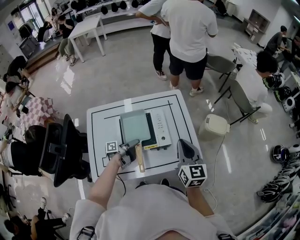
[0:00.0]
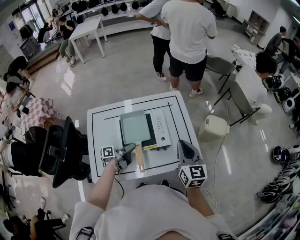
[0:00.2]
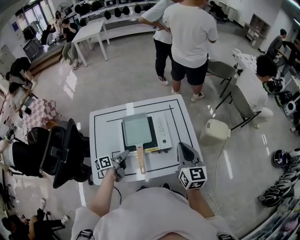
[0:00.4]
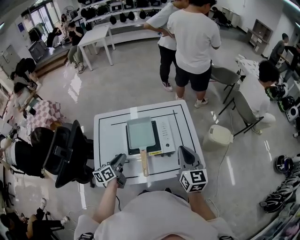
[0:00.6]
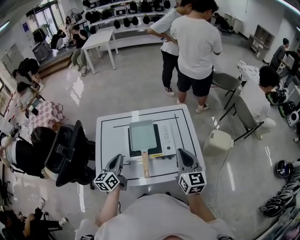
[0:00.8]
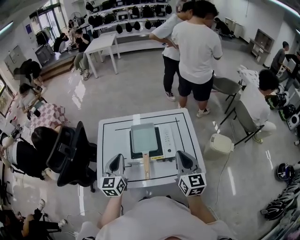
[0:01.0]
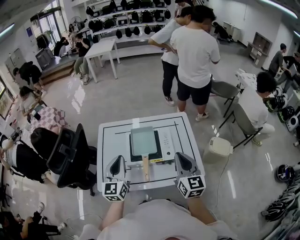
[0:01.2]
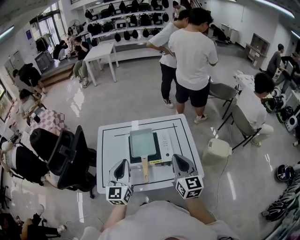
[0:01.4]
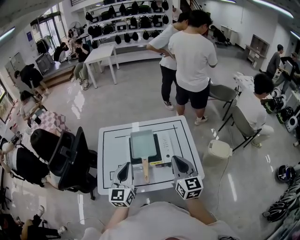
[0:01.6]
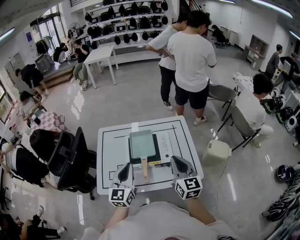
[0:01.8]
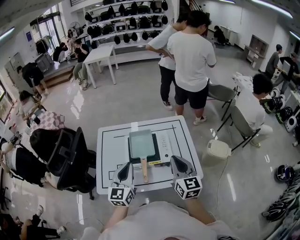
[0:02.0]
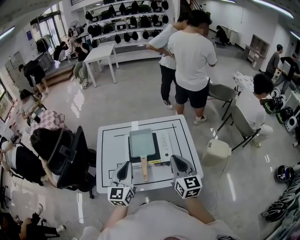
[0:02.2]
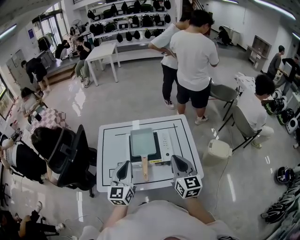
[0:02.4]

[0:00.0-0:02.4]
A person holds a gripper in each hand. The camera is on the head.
0:00.0 to 0:01.2: The left gripper shifts roughly 25 cm upward, rotates around the line of its fingers by about 90 degrees, clockwise from behind, and closes up; the right gripper ends up roughly 5 cm from where it was.
0:01.2 to 0:02.4: The grippers move only a little.

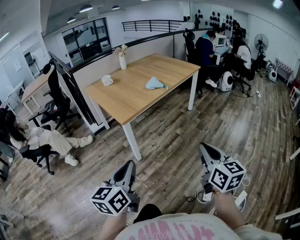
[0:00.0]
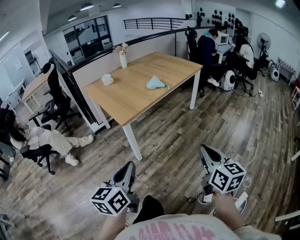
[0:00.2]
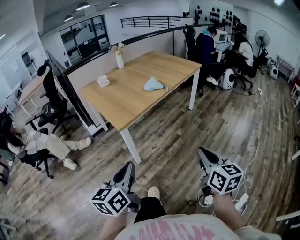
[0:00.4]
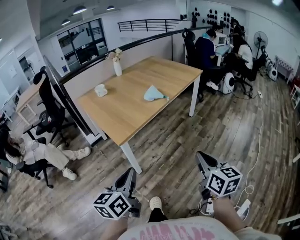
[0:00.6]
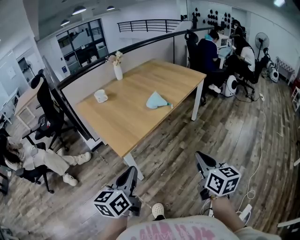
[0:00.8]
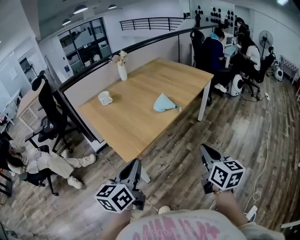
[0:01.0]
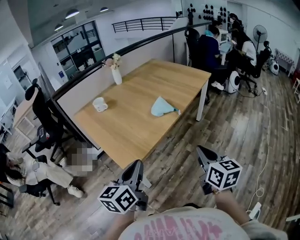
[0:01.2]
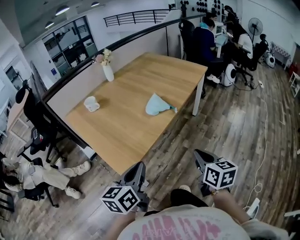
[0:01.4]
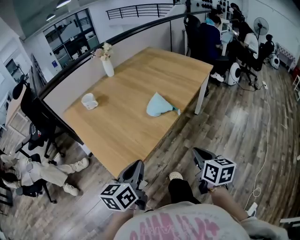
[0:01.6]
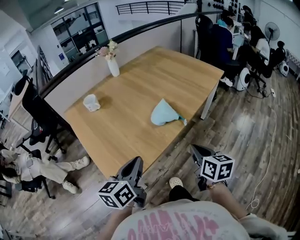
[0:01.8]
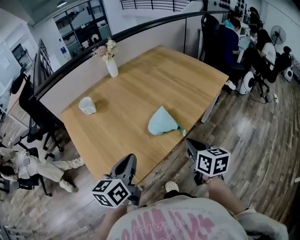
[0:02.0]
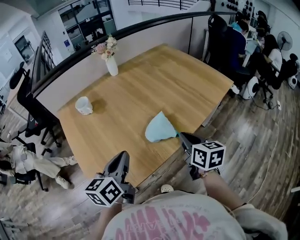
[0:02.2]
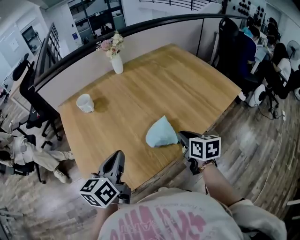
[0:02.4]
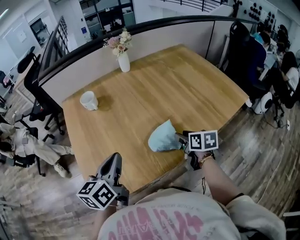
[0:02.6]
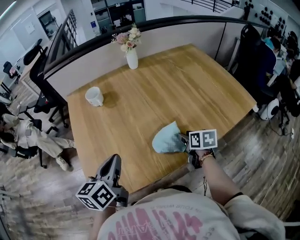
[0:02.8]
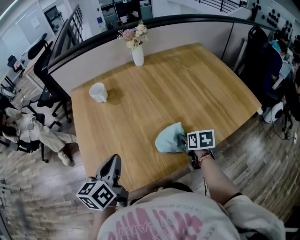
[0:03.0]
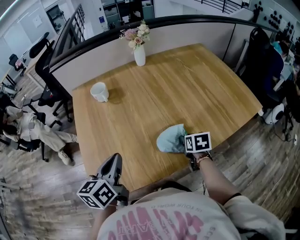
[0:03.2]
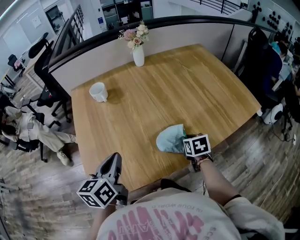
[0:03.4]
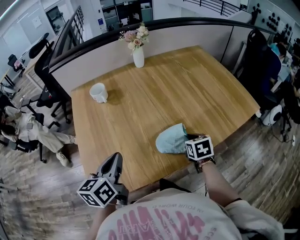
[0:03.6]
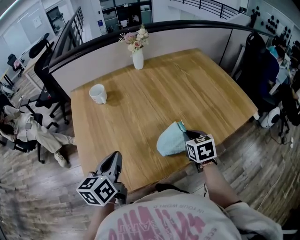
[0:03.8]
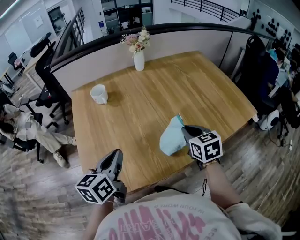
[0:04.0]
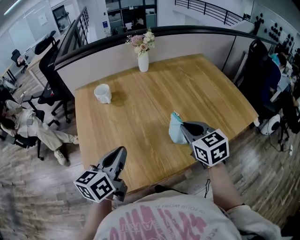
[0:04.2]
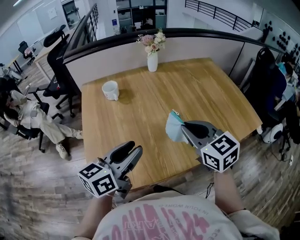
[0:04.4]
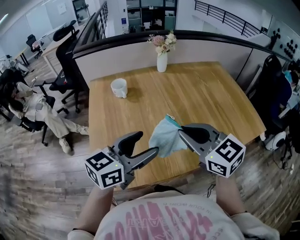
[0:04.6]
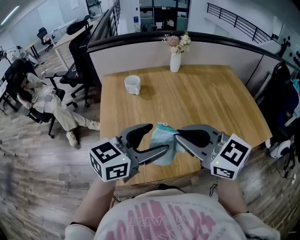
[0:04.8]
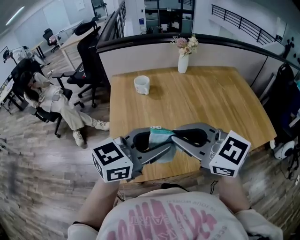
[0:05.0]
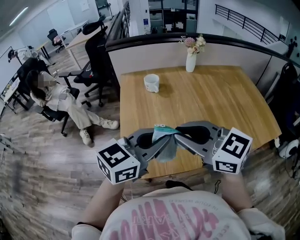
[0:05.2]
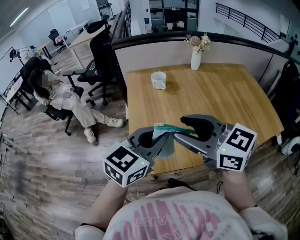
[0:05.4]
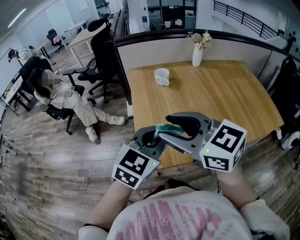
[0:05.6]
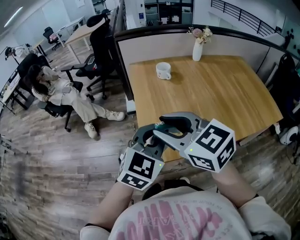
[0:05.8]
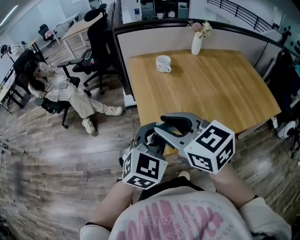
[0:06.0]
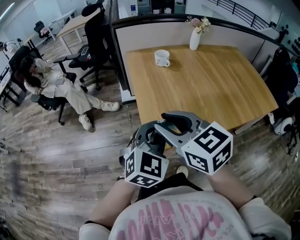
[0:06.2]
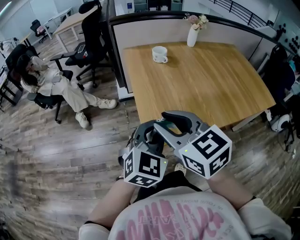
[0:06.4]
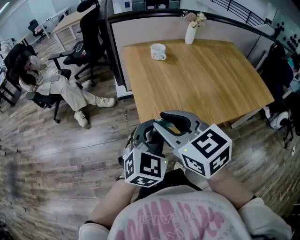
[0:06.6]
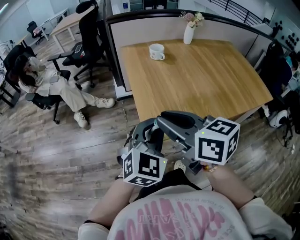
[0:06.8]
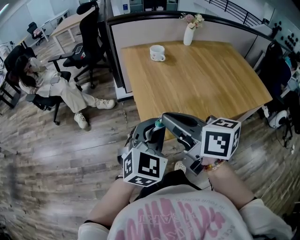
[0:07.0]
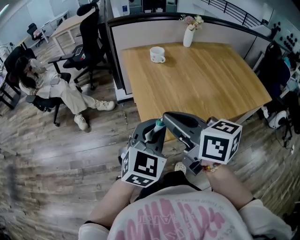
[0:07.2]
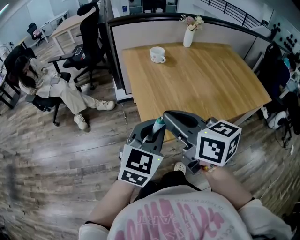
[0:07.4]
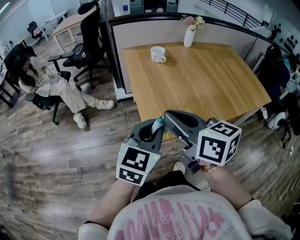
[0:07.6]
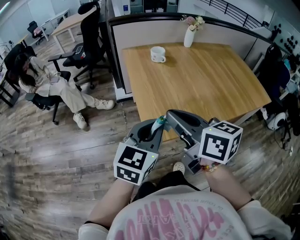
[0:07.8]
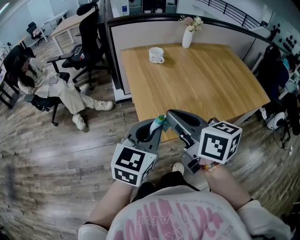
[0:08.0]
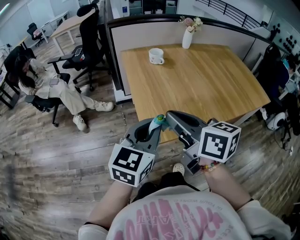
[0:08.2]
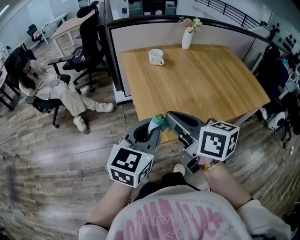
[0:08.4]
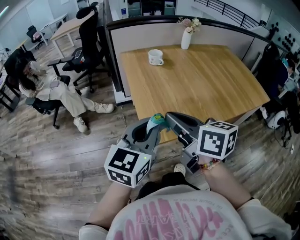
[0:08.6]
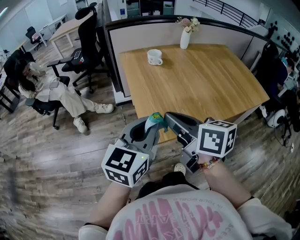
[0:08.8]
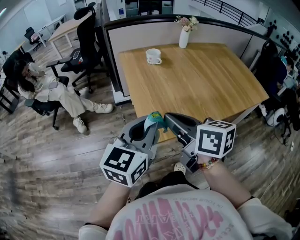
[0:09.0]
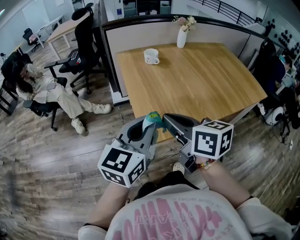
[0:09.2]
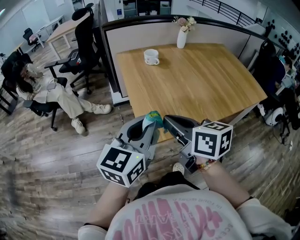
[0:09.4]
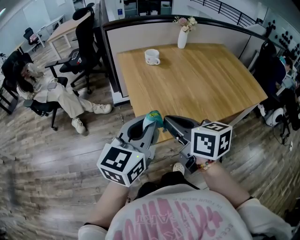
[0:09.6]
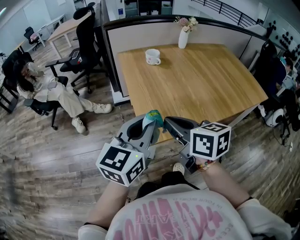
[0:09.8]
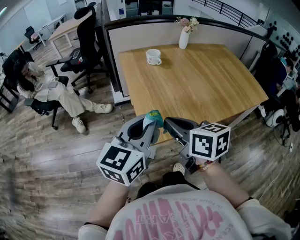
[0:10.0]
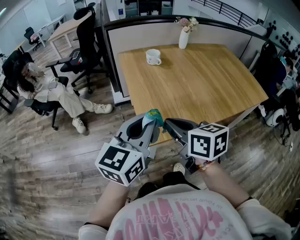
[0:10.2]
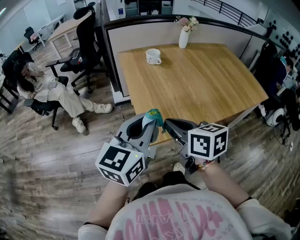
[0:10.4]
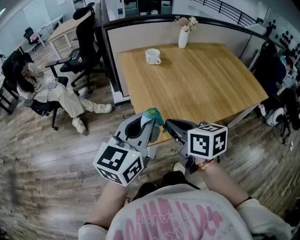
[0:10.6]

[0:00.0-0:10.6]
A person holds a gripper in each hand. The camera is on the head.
0:00.0 to 0:01.6: Both grippers are carried forward, about 40 cm. The right gripper rotates roughly 20 degrees.
0:01.6 to 0:03.0: The left gripper ends up some 20 cm from where it was, and turns by some 30 degrees; the right gripper shifts by approximately 40 cm, turns by some 40 degrees, and opens up.
0:03.0 to 0:04.6: The right gripper is displaced upward and to the left by about 30 cm, angles its fingers upward, by about 30 degrees, and closes, while the left gripper shifts approximately 10 cm upward and to the right, changes its angle by approximately 30 degrees, and opens up.
0:04.6 to 0:06.0: The right gripper is displaced to the left by approximately 35 cm, and opens its fingers. Meanwhile the left gripper goes about 20 cm to the left and backward, rotates roughly 40 degrees, and closes its fingers.
0:06.0 to 0:07.6: The left gripper moves approximately 5 cm, and rotates roughly 20 degrees. Meanwhile the right gripper turns by about 30 degrees, and closes its fingers.
0:07.6 to 0:09.0: There are only small adjustments of the grippers.
0:09.0 to 0:10.6: There are only small adjustments of the grippers.

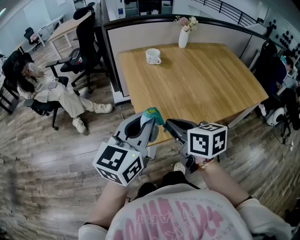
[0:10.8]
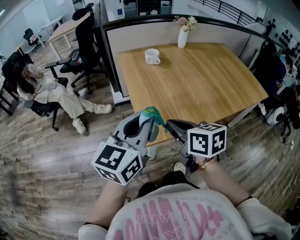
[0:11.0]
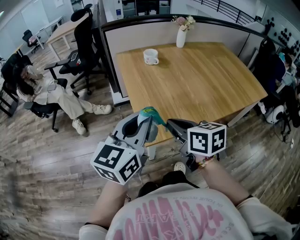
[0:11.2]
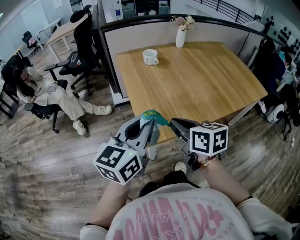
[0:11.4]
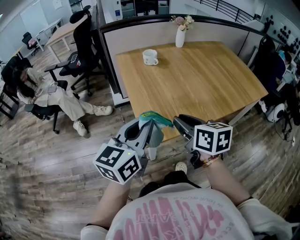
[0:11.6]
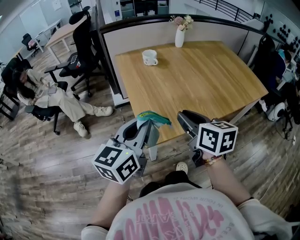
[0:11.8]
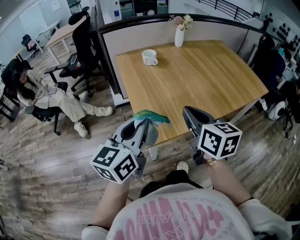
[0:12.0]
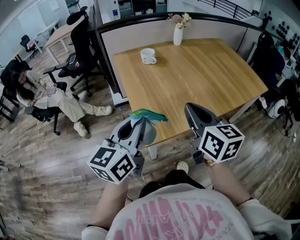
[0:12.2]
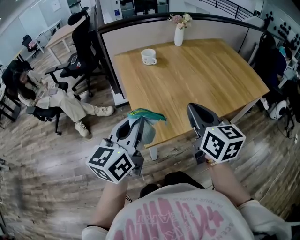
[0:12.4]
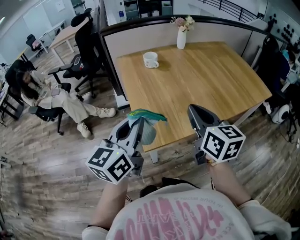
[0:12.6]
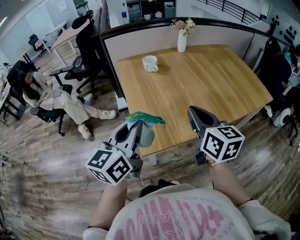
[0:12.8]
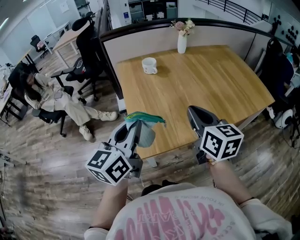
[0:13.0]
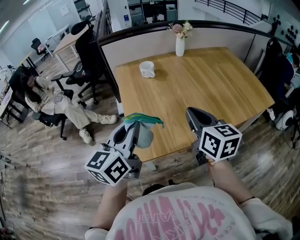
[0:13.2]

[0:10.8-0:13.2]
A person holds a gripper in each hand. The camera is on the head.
0:10.8 to 0:12.0: The right gripper shifts approximately 5 cm to the right, and opens, then closes again.
0:12.0 to 0:13.2: The right gripper is displaced to the right and forward by some 10 cm. The left gripper moves forward, about 5 cm.

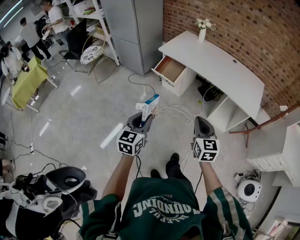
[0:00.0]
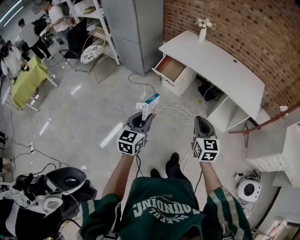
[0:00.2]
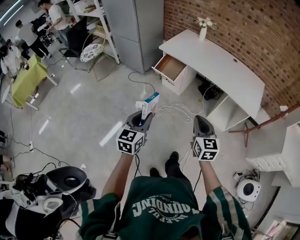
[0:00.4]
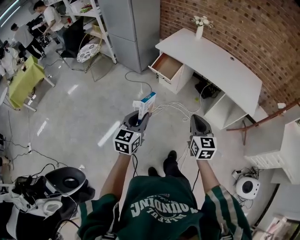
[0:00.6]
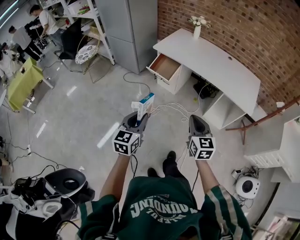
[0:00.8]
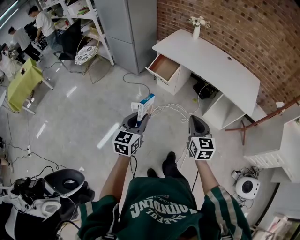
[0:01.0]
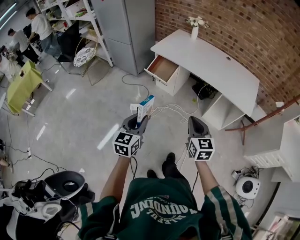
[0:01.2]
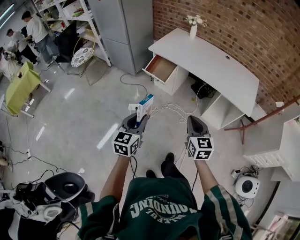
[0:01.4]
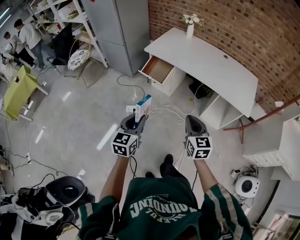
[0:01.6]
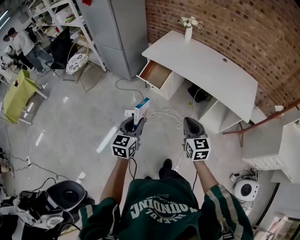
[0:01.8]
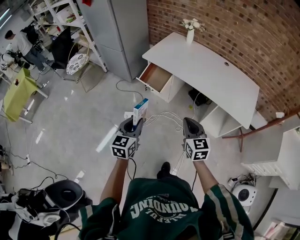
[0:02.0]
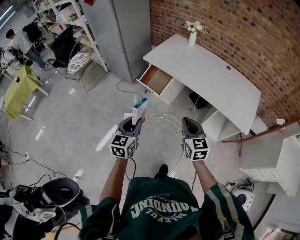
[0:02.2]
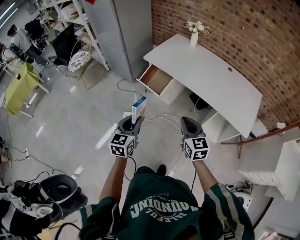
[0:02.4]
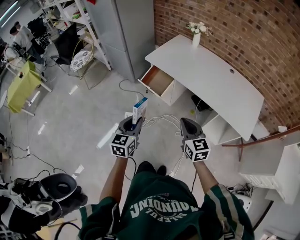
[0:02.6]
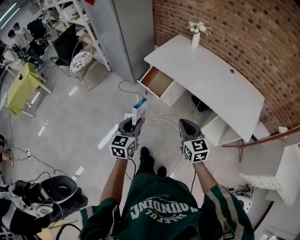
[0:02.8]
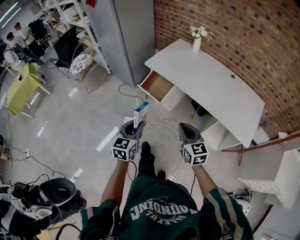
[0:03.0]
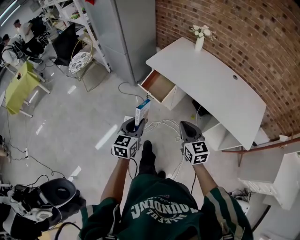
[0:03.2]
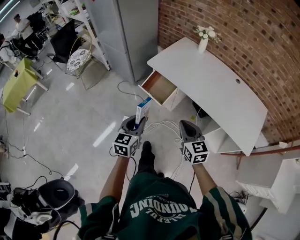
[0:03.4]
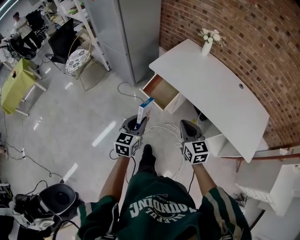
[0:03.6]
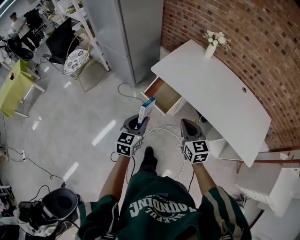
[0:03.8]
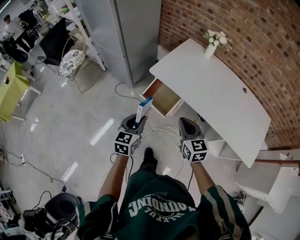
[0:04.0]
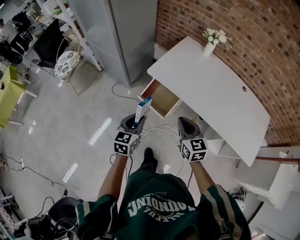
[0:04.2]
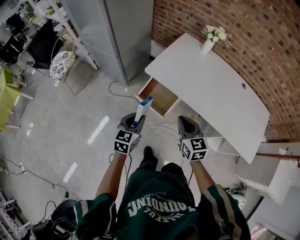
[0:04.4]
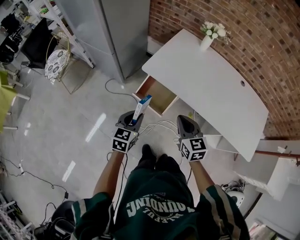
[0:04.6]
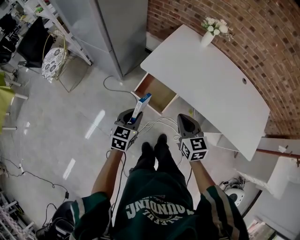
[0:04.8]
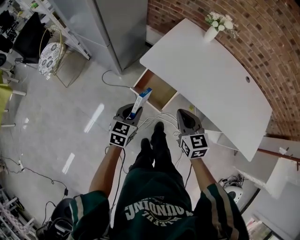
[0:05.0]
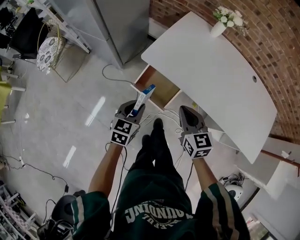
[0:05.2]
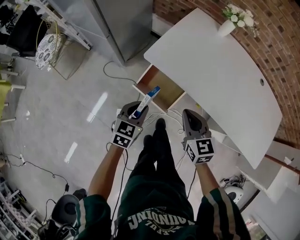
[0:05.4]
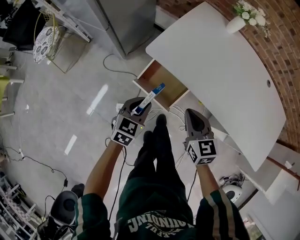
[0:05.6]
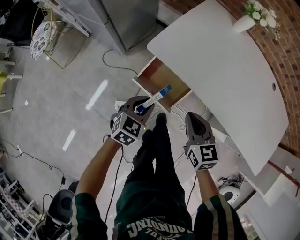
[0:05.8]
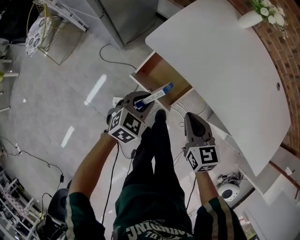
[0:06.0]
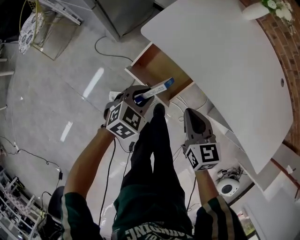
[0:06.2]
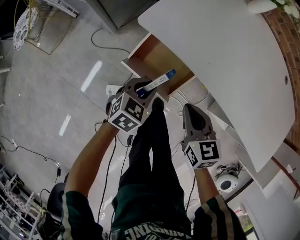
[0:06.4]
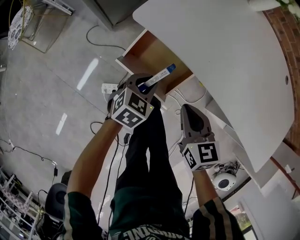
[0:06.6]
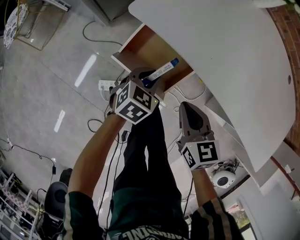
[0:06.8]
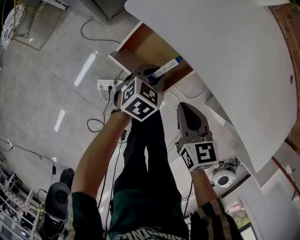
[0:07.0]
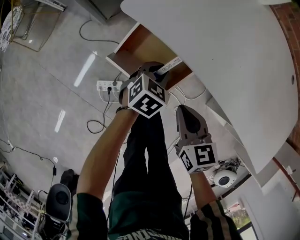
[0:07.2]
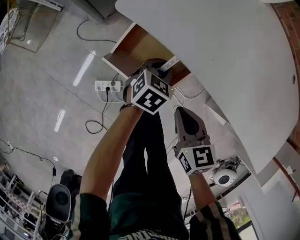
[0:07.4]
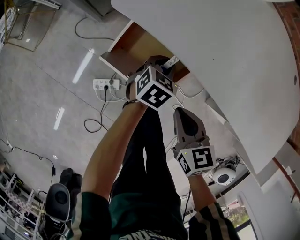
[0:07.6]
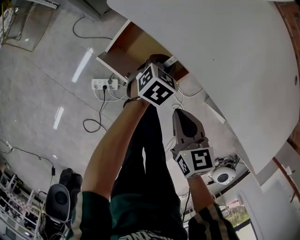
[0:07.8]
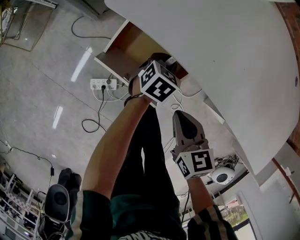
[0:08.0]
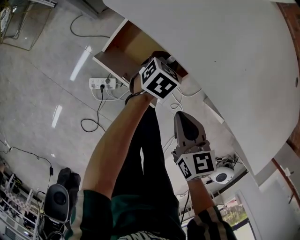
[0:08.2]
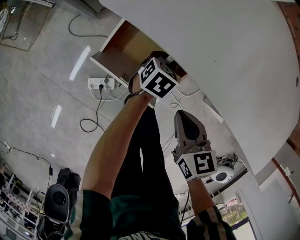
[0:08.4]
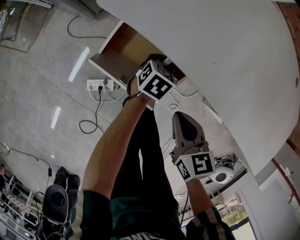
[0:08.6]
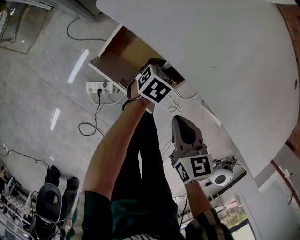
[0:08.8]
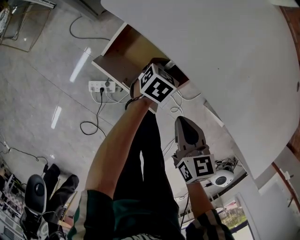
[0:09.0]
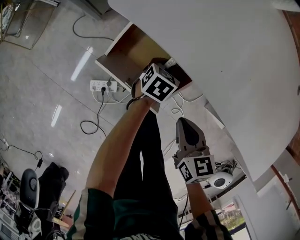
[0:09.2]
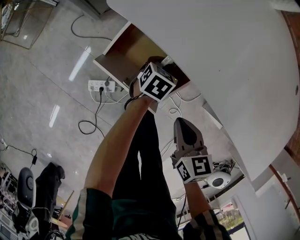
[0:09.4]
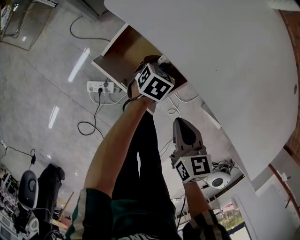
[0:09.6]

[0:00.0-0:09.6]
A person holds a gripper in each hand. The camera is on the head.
0:00.0 to 0:01.6: Both grippers travel together forward, about 5 cm.
0:01.6 to 0:03.2: The two grippers go approximately 20 cm forward.
0:03.2 to 0:04.8: The right gripper shifts approximately 25 cm forward; the left gripper travels forward and downward by about 30 cm.
0:04.8 to 0:06.4: The left gripper heads downward and forward, covering some 25 cm, and rotates some 20 degrees. Meanwhile the right gripper travels downward by roughly 20 cm.
0:06.4 to 0:08.0: The left gripper shifts approximately 20 cm downward, to the right and forward. Meanwhile the right gripper goes about 10 cm downward.
0:08.0 to 0:09.6: The left gripper goes roughly 5 cm downward.
